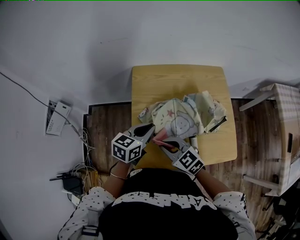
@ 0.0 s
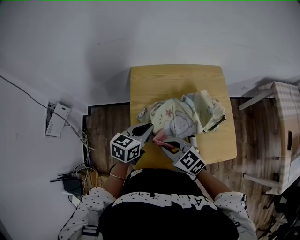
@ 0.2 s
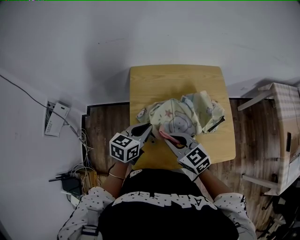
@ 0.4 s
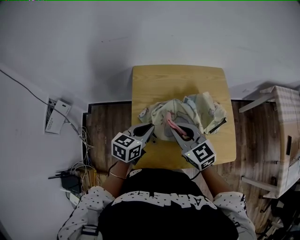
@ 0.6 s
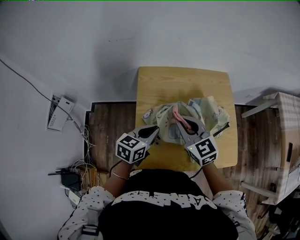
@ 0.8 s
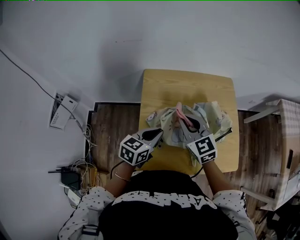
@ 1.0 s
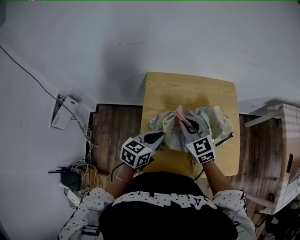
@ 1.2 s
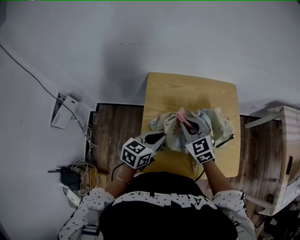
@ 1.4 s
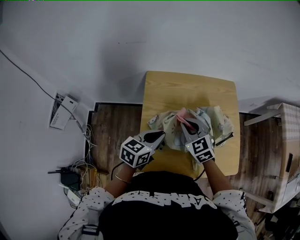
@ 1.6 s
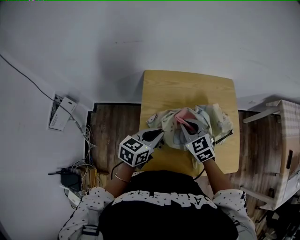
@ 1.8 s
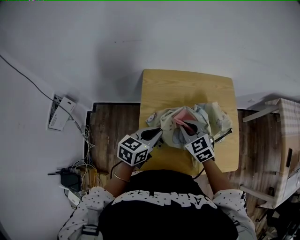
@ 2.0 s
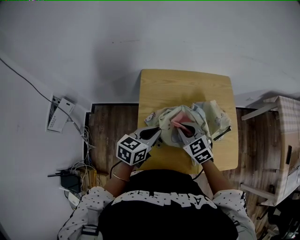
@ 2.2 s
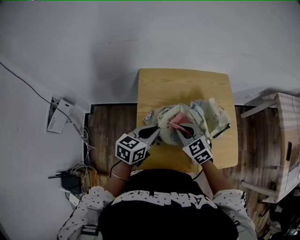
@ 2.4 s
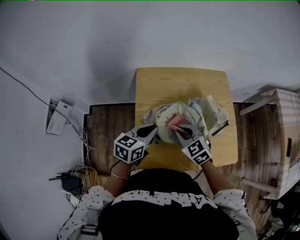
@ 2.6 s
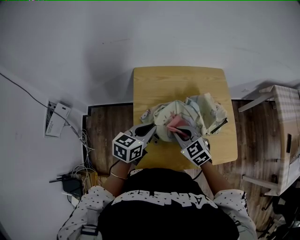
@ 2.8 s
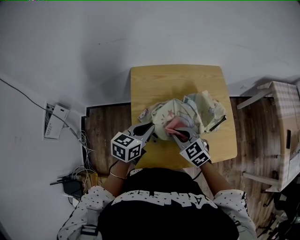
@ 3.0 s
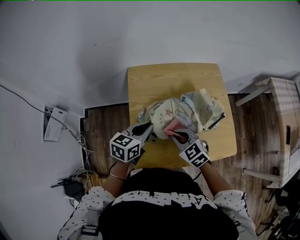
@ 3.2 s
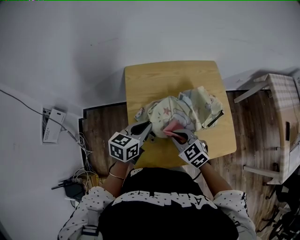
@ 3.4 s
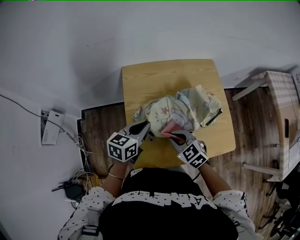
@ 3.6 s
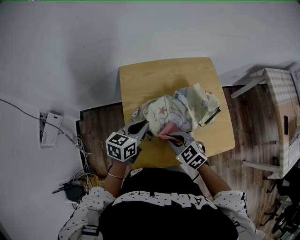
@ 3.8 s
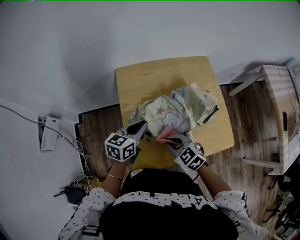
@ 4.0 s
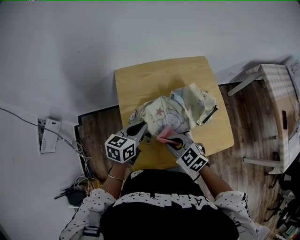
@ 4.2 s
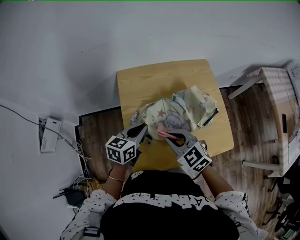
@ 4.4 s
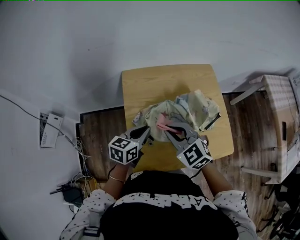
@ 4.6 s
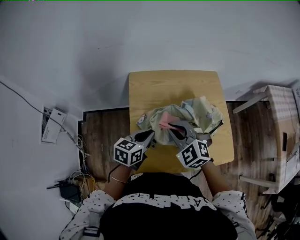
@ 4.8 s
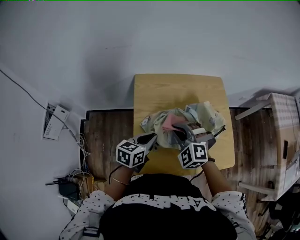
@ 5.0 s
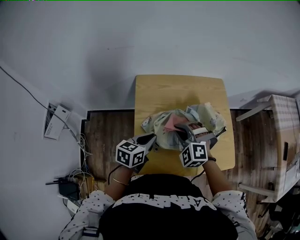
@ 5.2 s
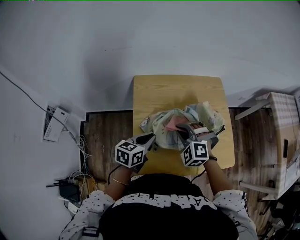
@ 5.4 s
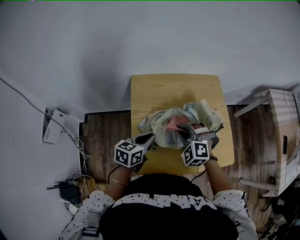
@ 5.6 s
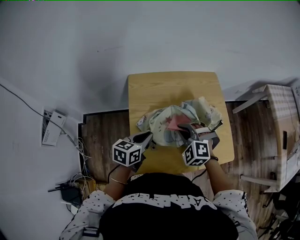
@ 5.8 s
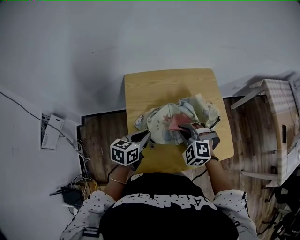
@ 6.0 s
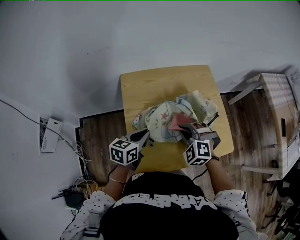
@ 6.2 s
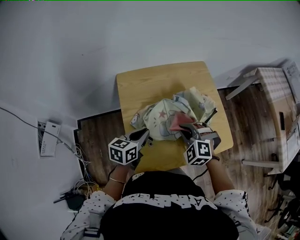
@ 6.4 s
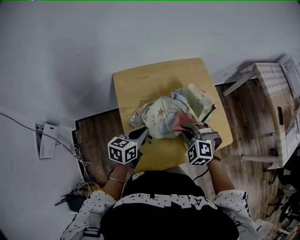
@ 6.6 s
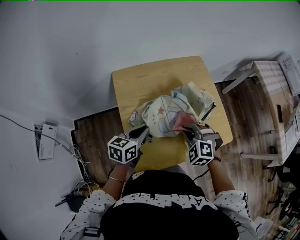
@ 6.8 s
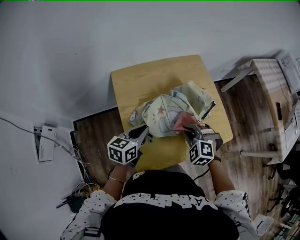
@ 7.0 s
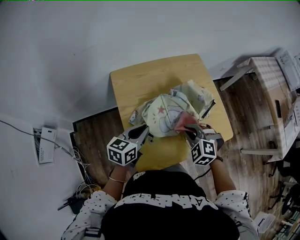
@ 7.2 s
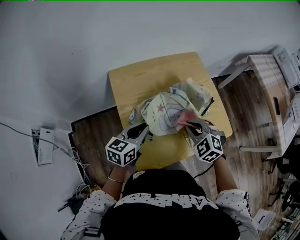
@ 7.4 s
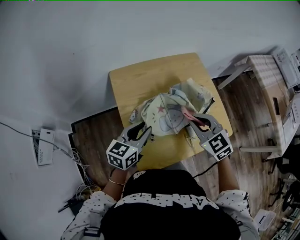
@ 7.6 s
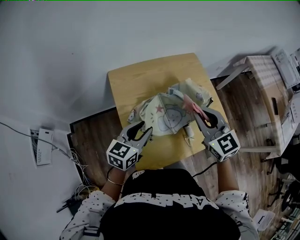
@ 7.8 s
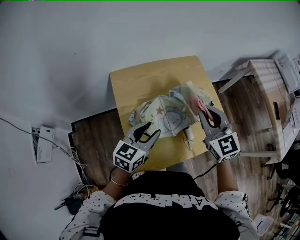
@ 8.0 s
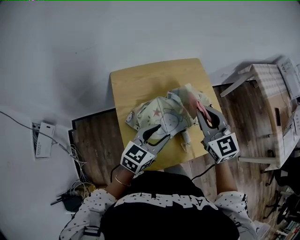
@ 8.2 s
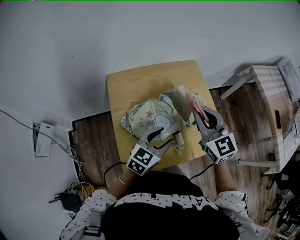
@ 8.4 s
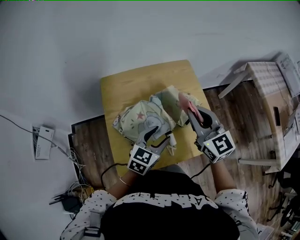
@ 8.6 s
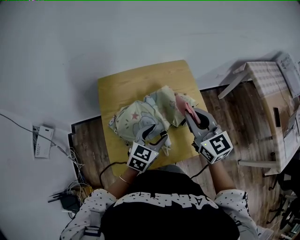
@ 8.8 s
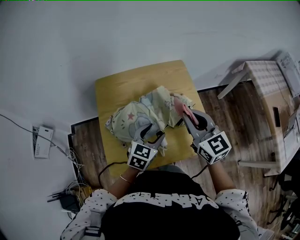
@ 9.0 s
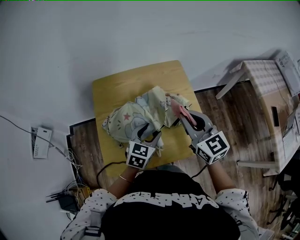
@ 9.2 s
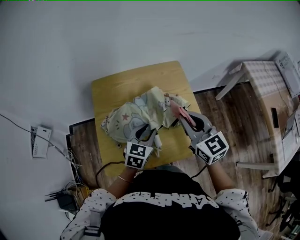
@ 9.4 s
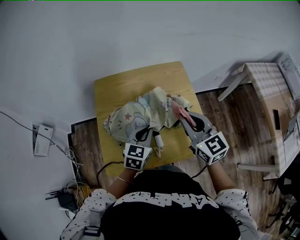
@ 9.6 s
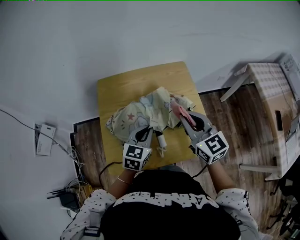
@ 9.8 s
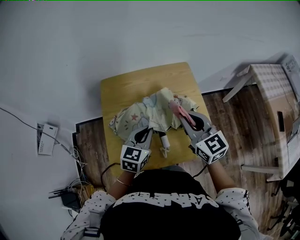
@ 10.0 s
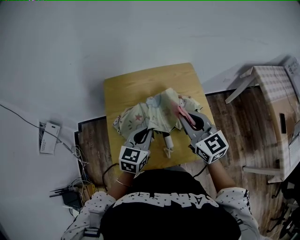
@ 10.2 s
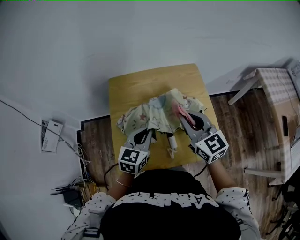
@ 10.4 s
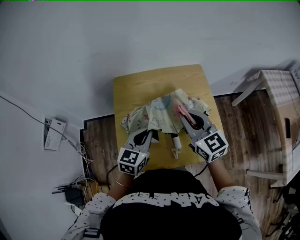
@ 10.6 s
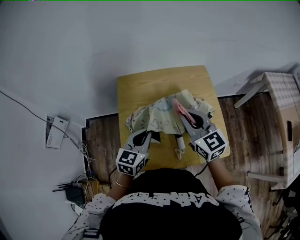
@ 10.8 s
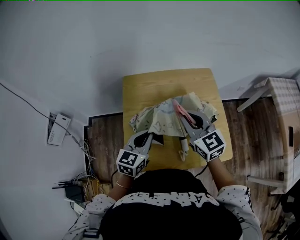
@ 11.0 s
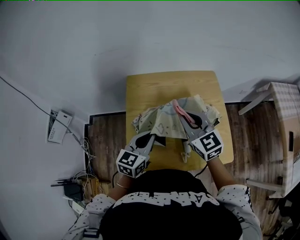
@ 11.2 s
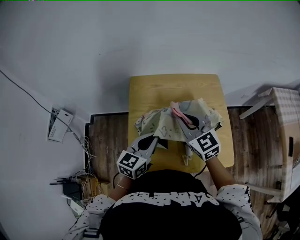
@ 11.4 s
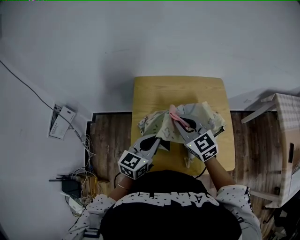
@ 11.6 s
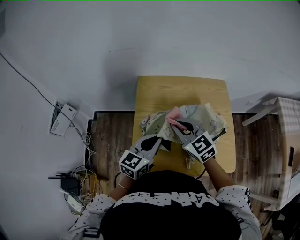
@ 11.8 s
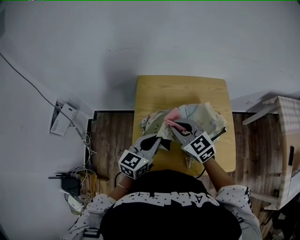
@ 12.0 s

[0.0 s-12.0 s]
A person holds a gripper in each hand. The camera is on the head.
0.0 to 1.6 s: The right gripper is displaced forward by about 15 cm, and turns by approximately 20 degrees.
1.6 to 3.0 s: The right gripper heads backward, covering about 10 cm.
3.0 to 4.4 s: The right gripper moves upward, some 5 cm.
4.4 to 6.0 s: The right gripper travels forward by roughly 5 cm, and rotates some 40 degrees.
6.0 to 7.6 s: The right gripper travels upward by roughly 5 cm, and turns by about 40 degrees.
7.6 to 9.0 s: The right gripper is displaced to the right and upward by some 15 cm, and swivels about 30 degrees; the left gripper heads to the right, covering roughly 20 cm, rotates some 20 degrees, and opens up.
9.0 to 10.4 s: The right gripper shifts roughly 5 cm to the left. Meanwhile the left gripper goes approximately 10 cm to the left, and closes its fingers.
10.4 to 12.0 s: The left gripper heads to the left, covering roughly 10 cm. The right gripper is displaced to the left by approximately 15 cm, and swivels some 30 degrees.

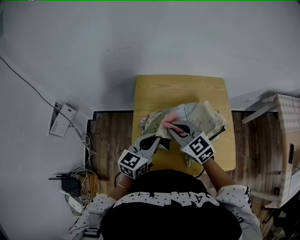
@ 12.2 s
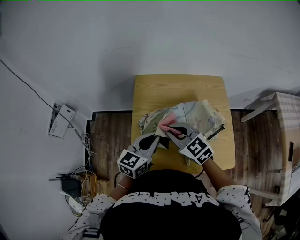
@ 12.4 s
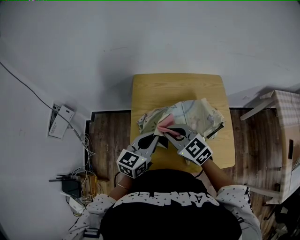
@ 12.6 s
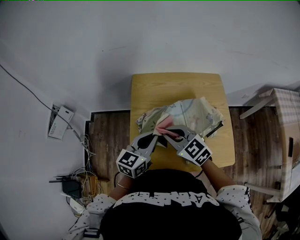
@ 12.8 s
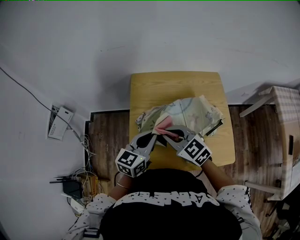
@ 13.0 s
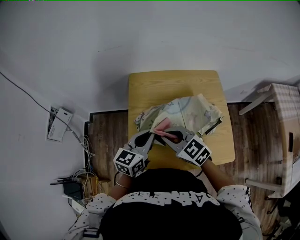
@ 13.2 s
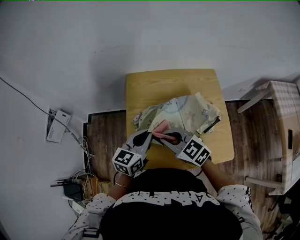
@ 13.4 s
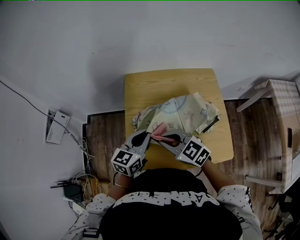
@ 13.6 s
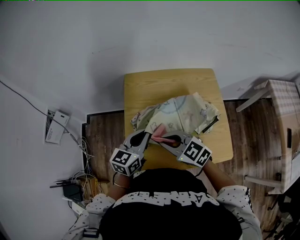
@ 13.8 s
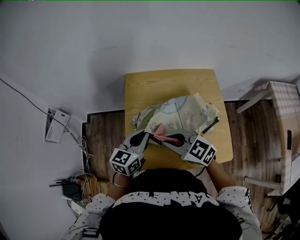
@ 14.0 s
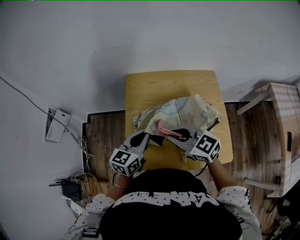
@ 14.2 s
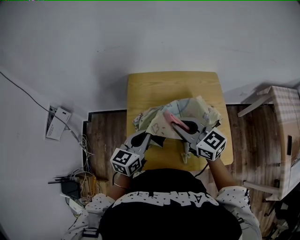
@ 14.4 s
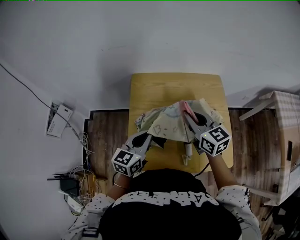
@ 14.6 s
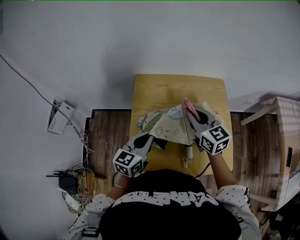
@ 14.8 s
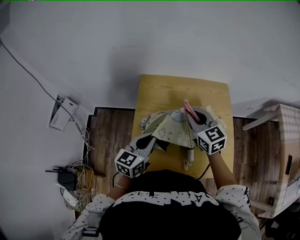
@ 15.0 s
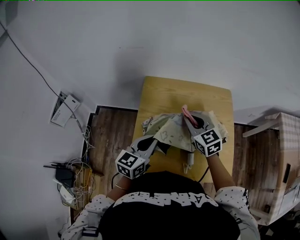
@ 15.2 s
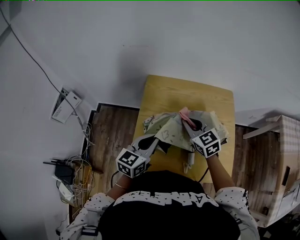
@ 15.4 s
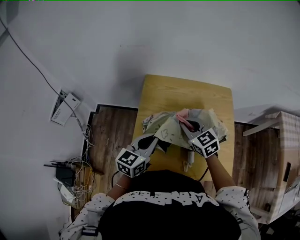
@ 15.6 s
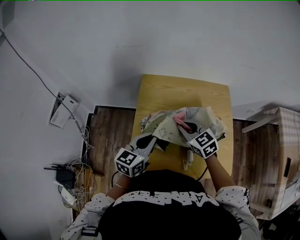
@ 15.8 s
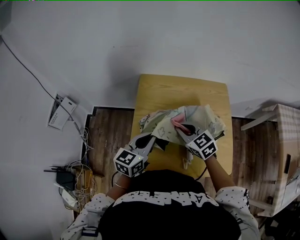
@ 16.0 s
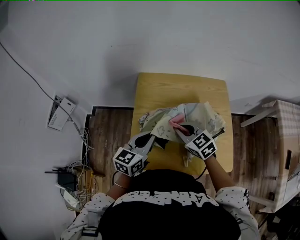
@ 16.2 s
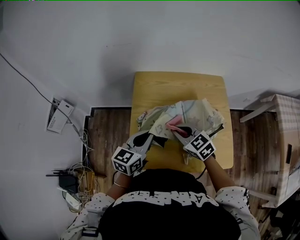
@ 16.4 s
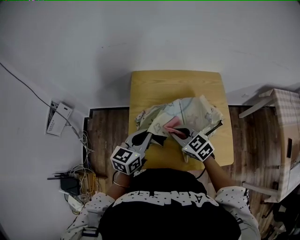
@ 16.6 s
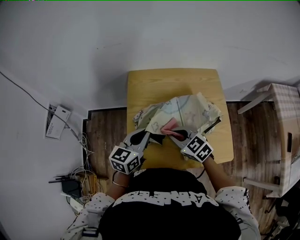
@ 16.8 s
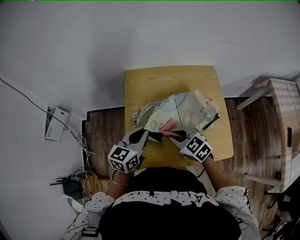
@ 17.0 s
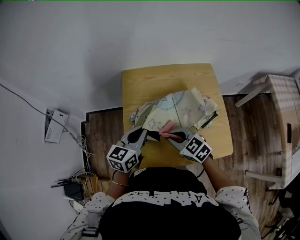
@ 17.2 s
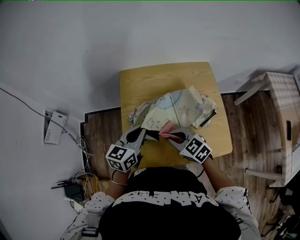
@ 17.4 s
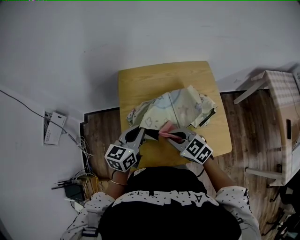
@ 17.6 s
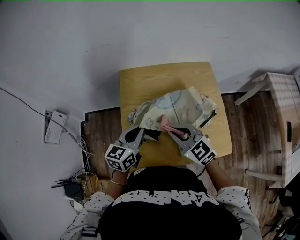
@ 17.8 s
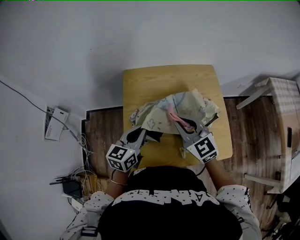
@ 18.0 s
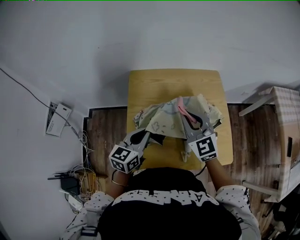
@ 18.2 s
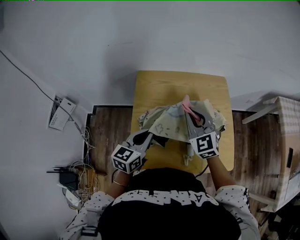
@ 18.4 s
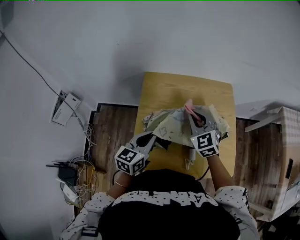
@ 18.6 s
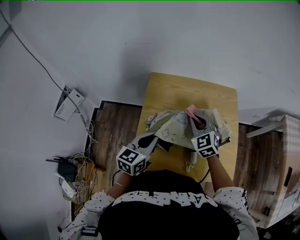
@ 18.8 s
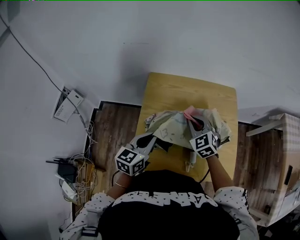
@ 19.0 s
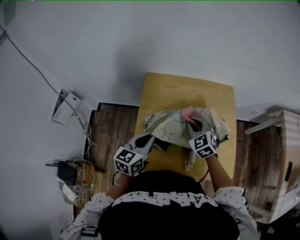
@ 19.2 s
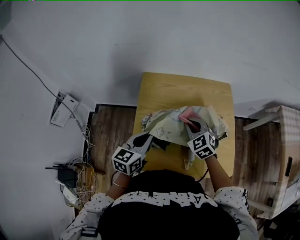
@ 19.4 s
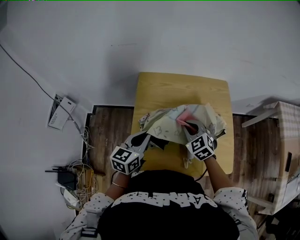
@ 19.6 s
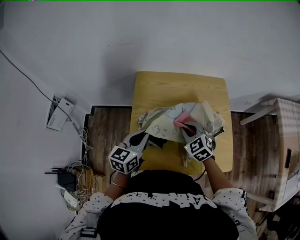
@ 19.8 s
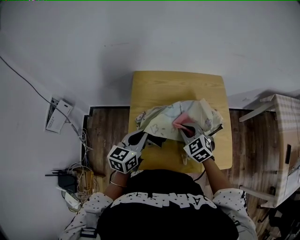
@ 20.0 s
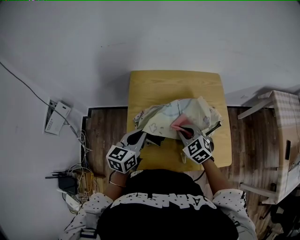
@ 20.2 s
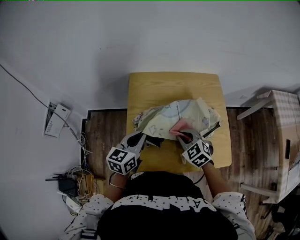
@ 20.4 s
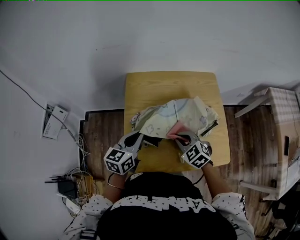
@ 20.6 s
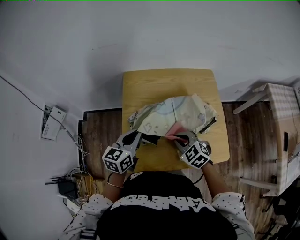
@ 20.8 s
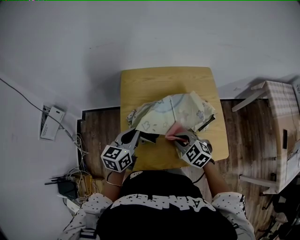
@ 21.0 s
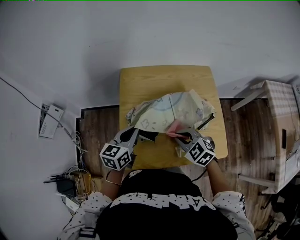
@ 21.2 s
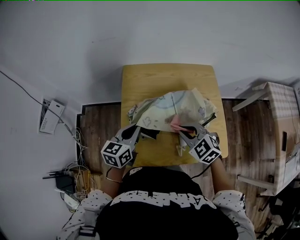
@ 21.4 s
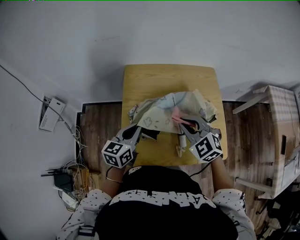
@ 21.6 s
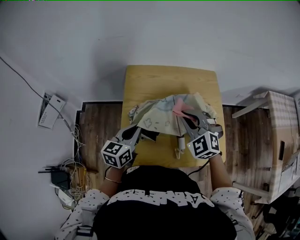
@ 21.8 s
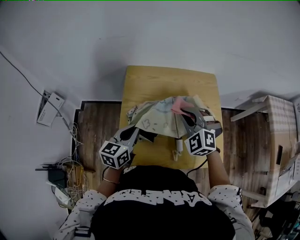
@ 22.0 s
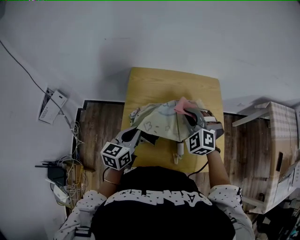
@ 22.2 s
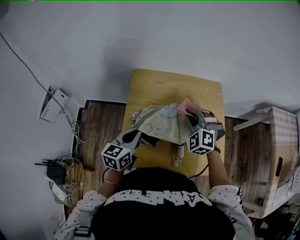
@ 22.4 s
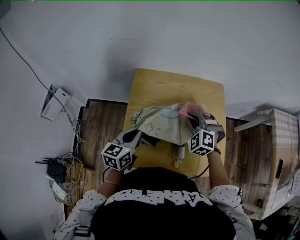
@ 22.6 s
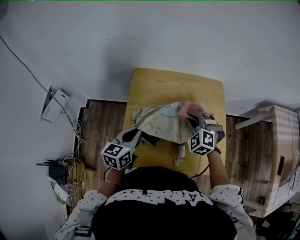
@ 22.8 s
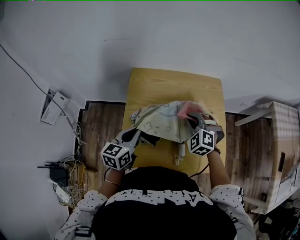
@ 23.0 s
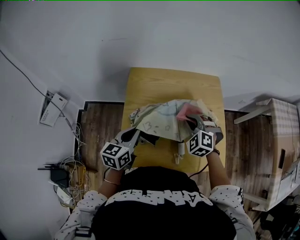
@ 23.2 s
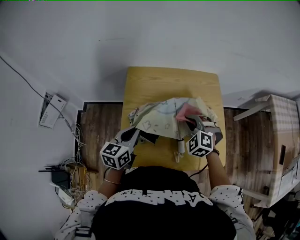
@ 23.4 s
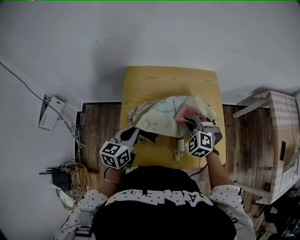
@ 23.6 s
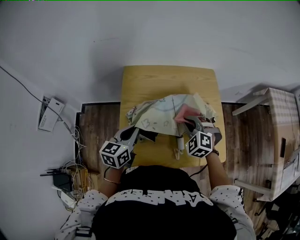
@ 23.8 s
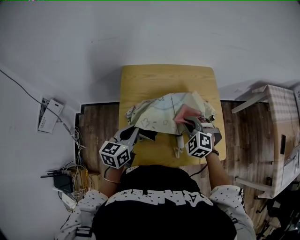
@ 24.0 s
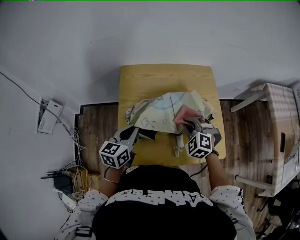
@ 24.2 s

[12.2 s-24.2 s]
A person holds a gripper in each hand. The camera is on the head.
12.2 to 13.8 s: The right gripper travels backward by roughly 5 cm.
13.8 to 15.2 s: The right gripper is displaced forward and to the right by approximately 15 cm, and turns by about 20 degrees.
15.2 to 16.6 s: The right gripper travels backward and downward by roughly 10 cm.
16.6 to 18.2 s: The right gripper heads upward and to the right, covering about 10 cm, and changes its angle by about 30 degrees.
18.2 to 19.8 s: The right gripper moves downward, approximately 10 cm, and changes its angle by some 30 degrees.
19.8 to 21.2 s: The right gripper heads backward, covering approximately 10 cm.
21.2 to 22.6 s: The right gripper goes about 15 cm forward, and swivels roughly 40 degrees.
22.6 to 24.2 s: The right gripper is displaced backward by about 10 cm.
